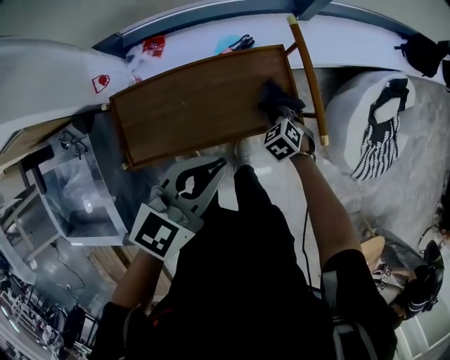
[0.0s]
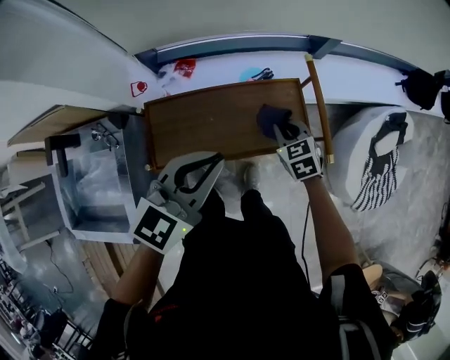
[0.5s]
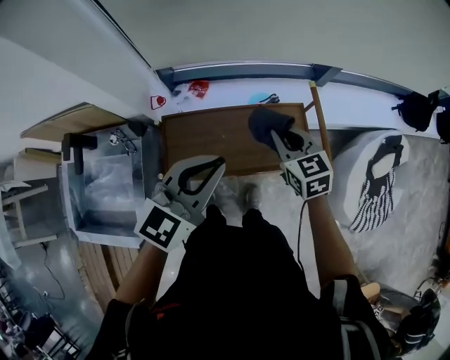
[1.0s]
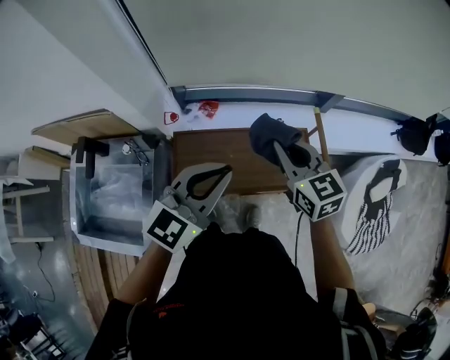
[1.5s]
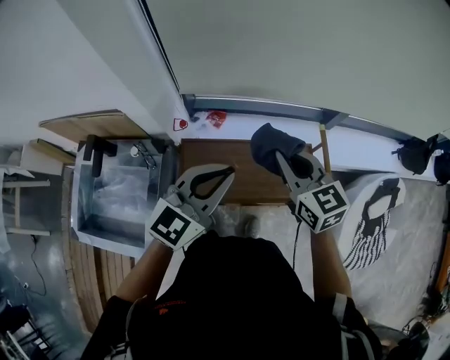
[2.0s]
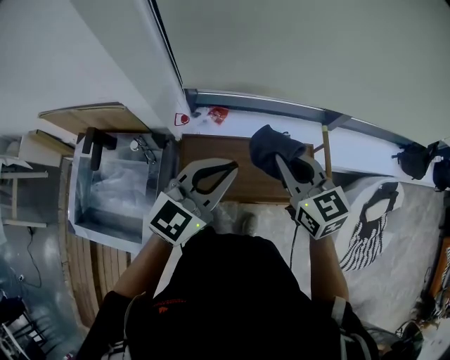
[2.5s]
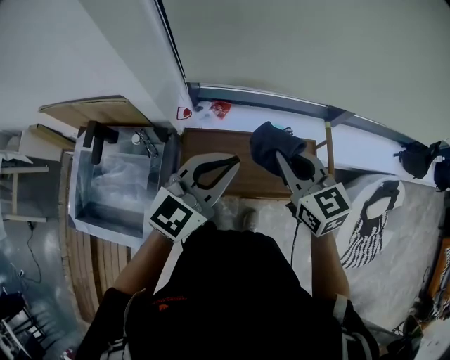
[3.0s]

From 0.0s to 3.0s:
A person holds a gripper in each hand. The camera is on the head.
From 0.0s to 1.5s: The right gripper goes some 40 cm upward and to the left, and tips its fingers upward by some 50 degrees. Meanwhile the left gripper travels upward and to the left by some 20 cm, and turns by about 20 degrees.
From 1.5s to 3.0s: The right gripper changes place by some 5 cm.

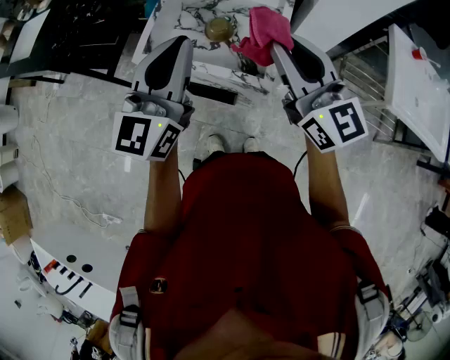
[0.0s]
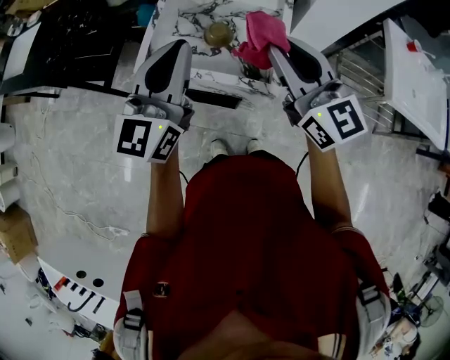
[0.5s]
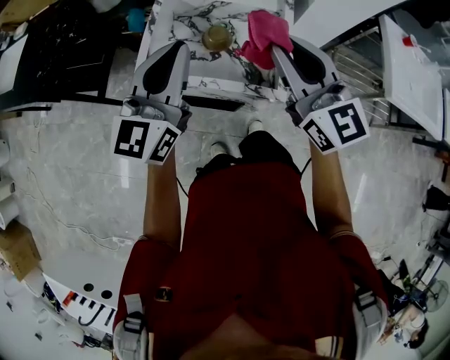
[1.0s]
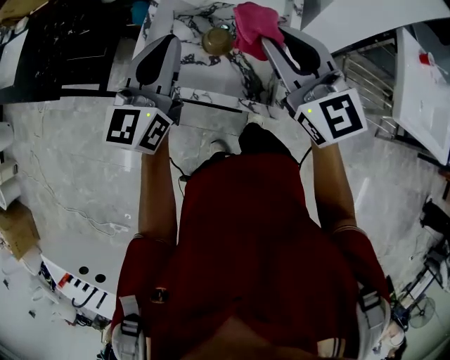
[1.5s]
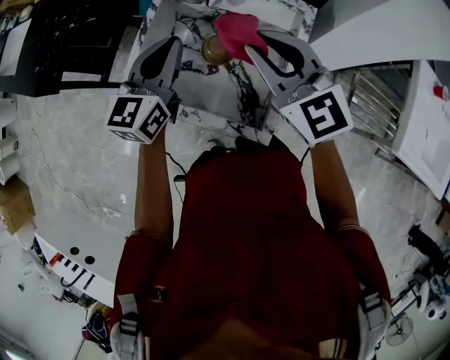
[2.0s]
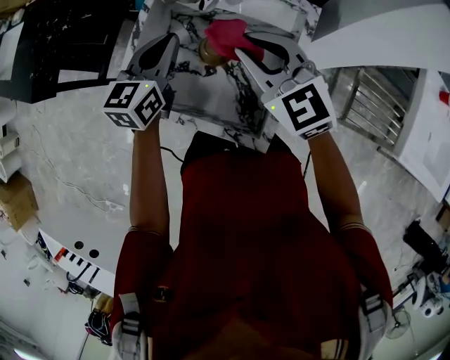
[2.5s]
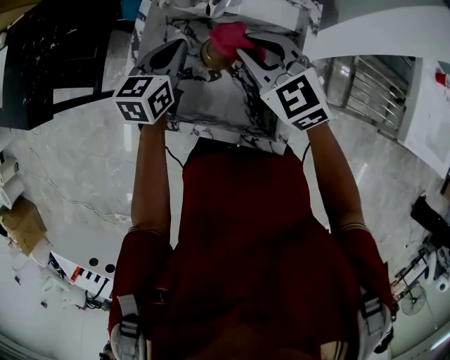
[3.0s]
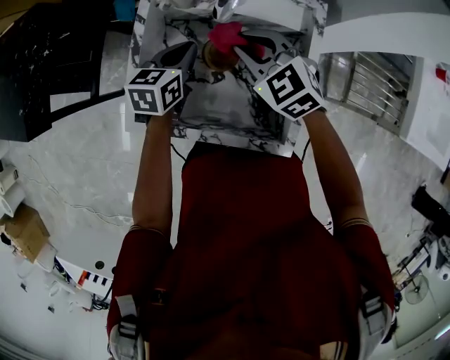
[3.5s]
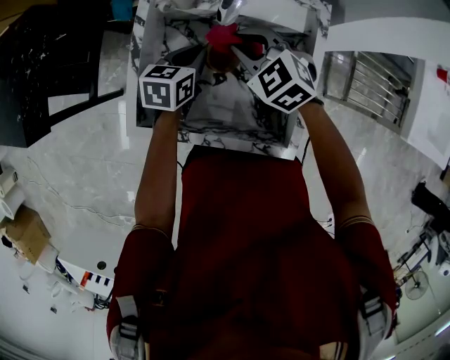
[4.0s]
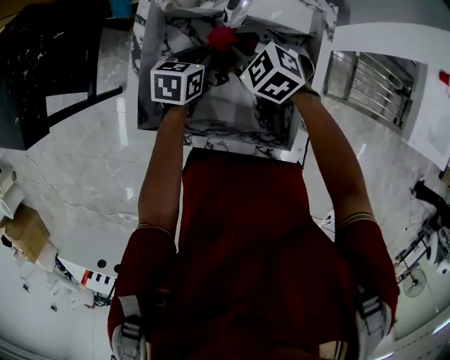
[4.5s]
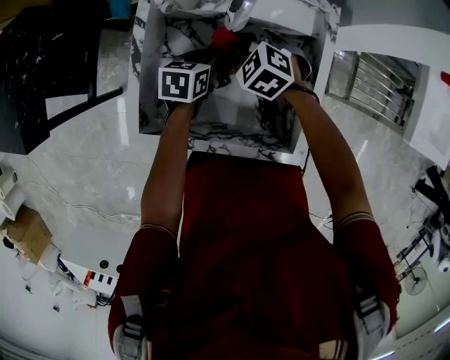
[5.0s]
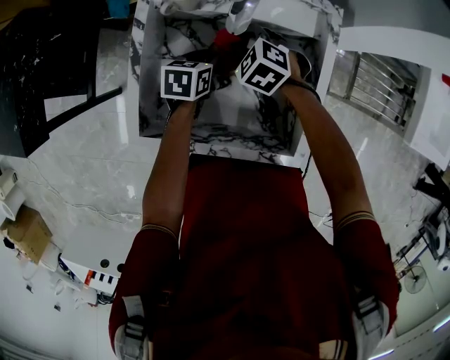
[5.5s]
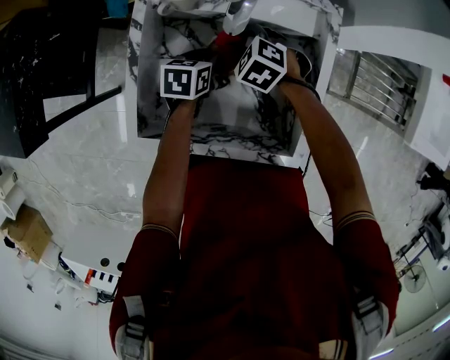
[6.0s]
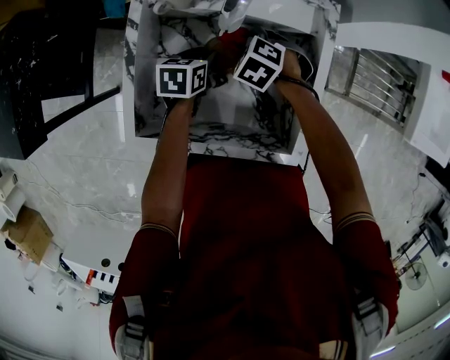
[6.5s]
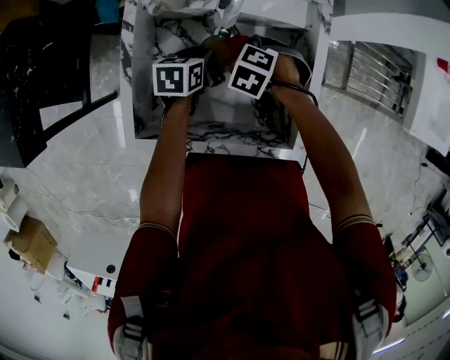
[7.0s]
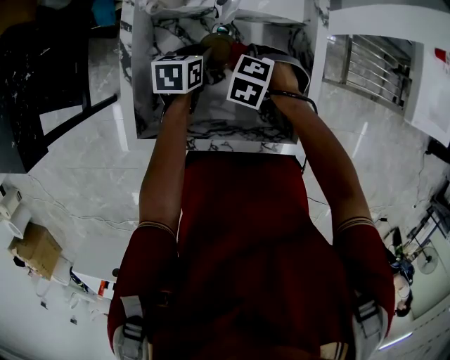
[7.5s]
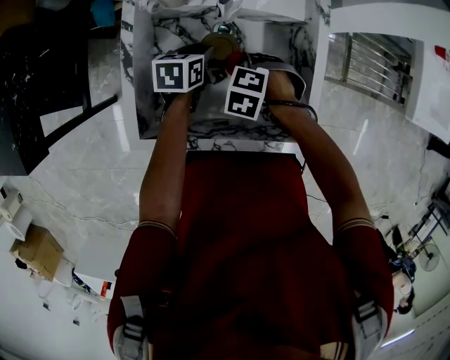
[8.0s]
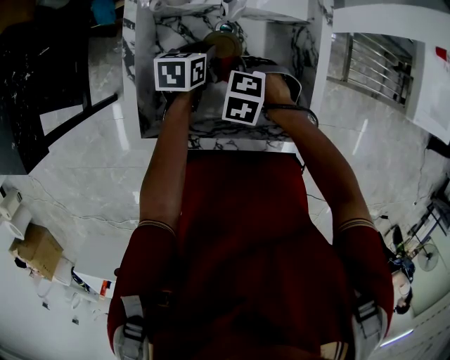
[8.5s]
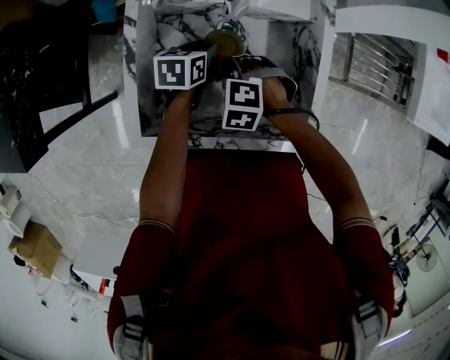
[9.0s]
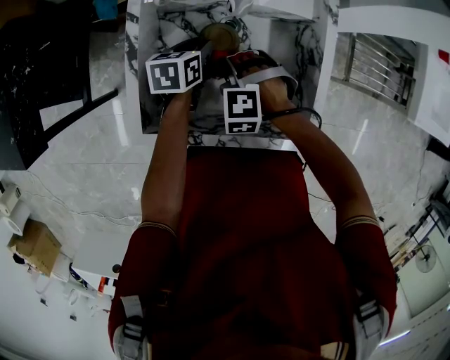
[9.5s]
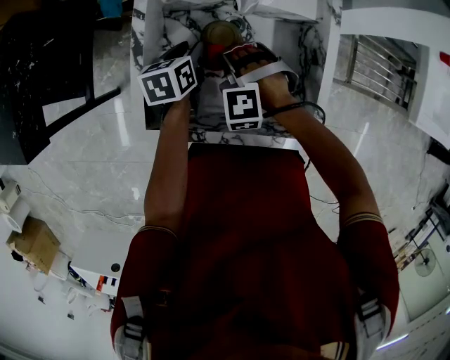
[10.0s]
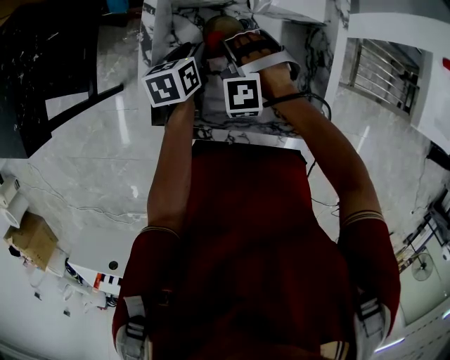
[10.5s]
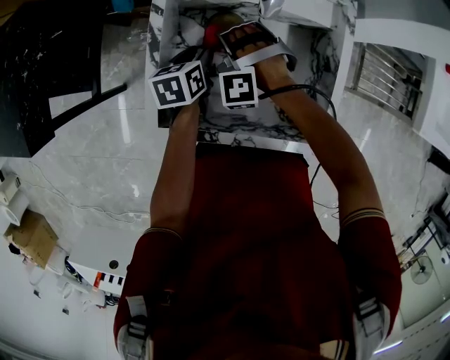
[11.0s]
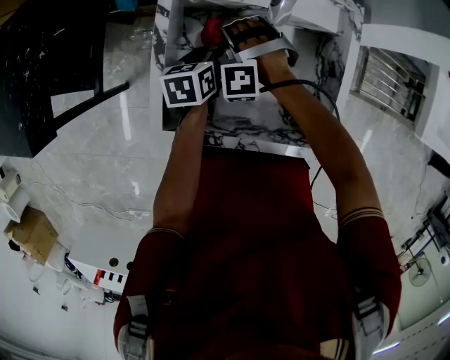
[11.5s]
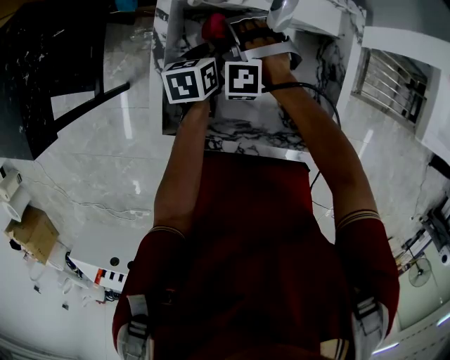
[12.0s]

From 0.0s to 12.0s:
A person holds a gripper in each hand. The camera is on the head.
From 0.0s to 2.0s: The grippers both shift forward and downward by some 25 cm. The right gripper rotates approximately 20 degrees.
From 2.0s to 4.0s: The left gripper is displaced downward by some 20 cm, and swivels roughly 40 degrees. The right gripper goes roughly 20 cm downward and forward, and angles its fingers downward, by some 30 degrees.
From 4.0s to 6.0s: The left gripper shifts roughly 10 cm downward, and opens its fingers; the right gripper travels downward by approximately 10 cm, and swivels roughly 20 degrees.
From 6.0s to 8.0s: The right gripper ends up roughly 10 cm from where it was.
From 8.0s to 10.0s: The left gripper moves approximately 5 cm, while the right gripper moves about 10 cm, and rotates some 40 degrees.
From 10.0s to 12.0s: The right gripper goes roughly 10 cm forward and to the left.

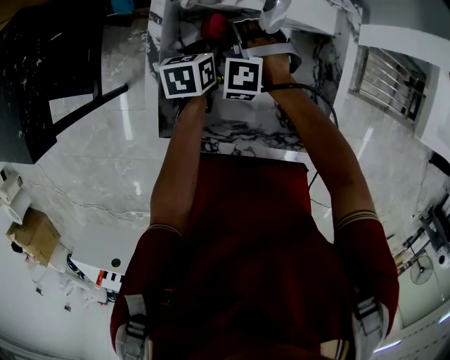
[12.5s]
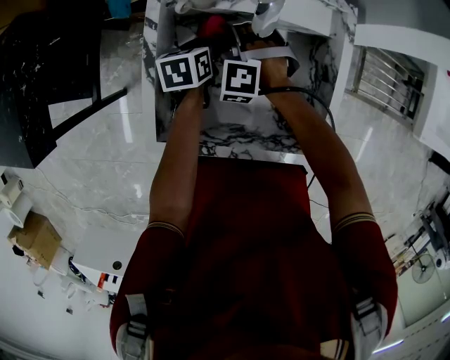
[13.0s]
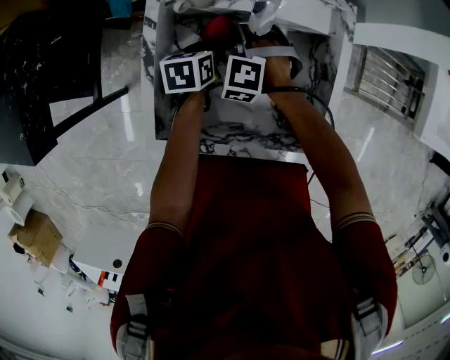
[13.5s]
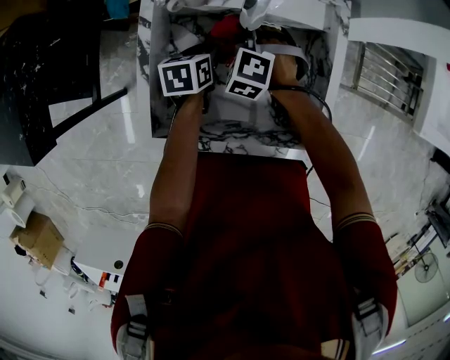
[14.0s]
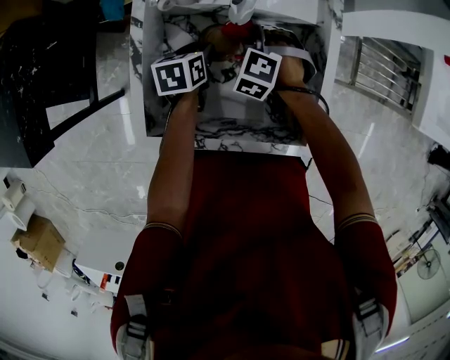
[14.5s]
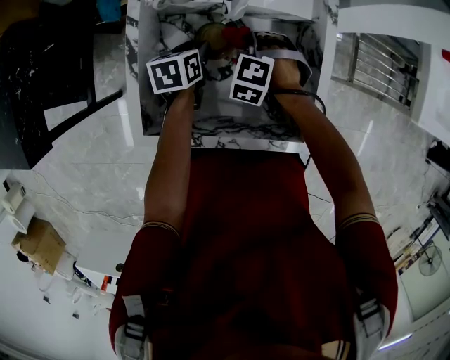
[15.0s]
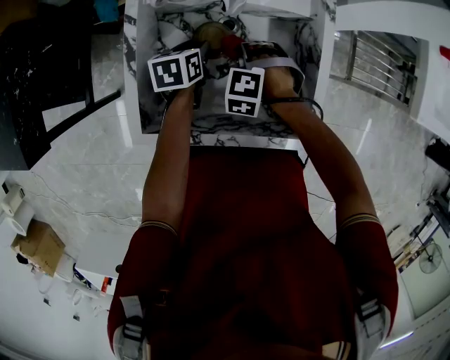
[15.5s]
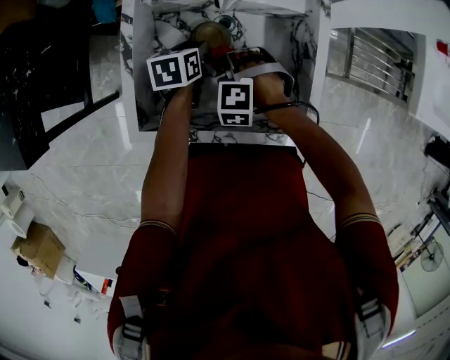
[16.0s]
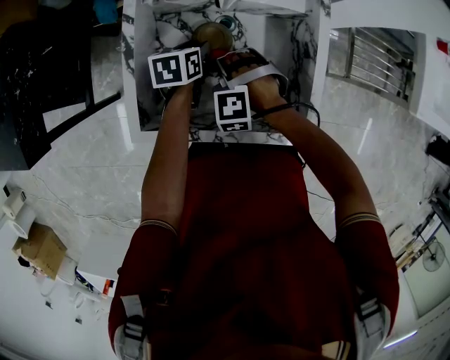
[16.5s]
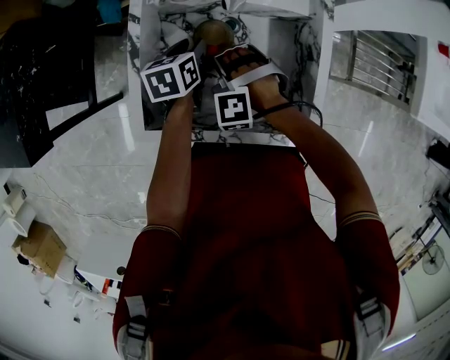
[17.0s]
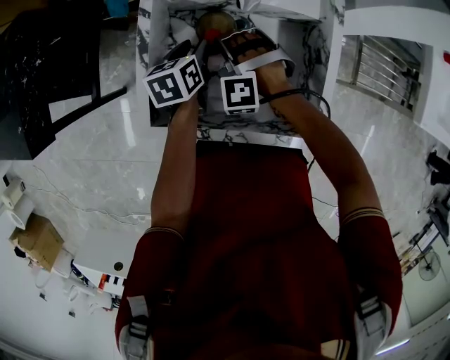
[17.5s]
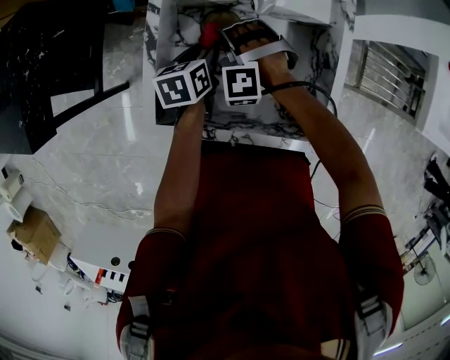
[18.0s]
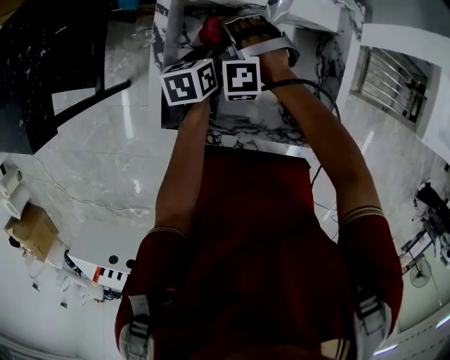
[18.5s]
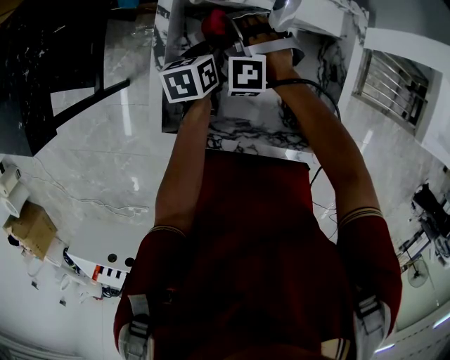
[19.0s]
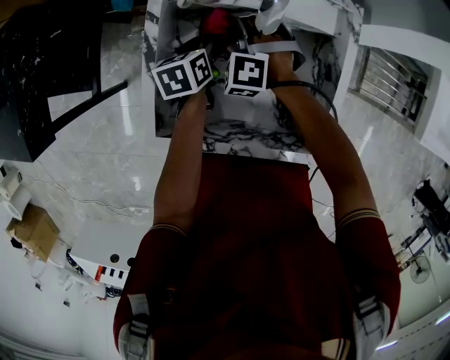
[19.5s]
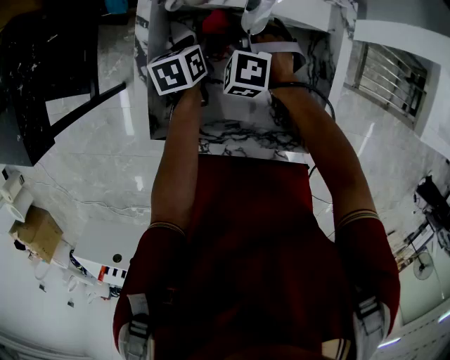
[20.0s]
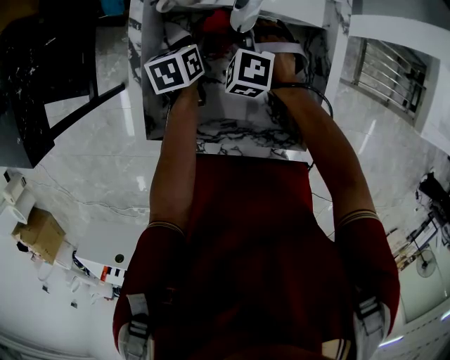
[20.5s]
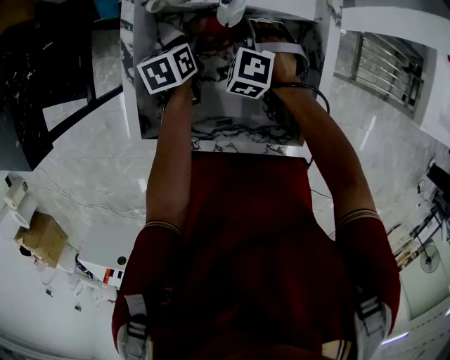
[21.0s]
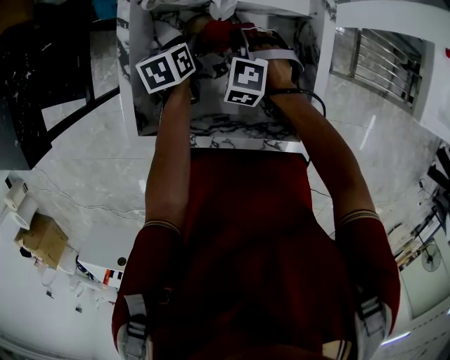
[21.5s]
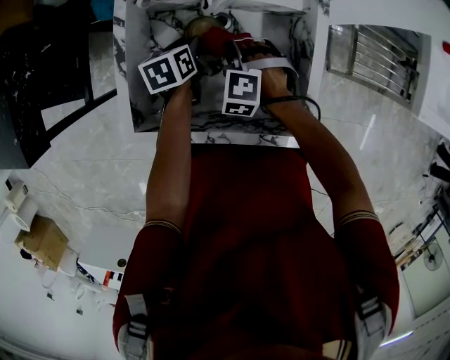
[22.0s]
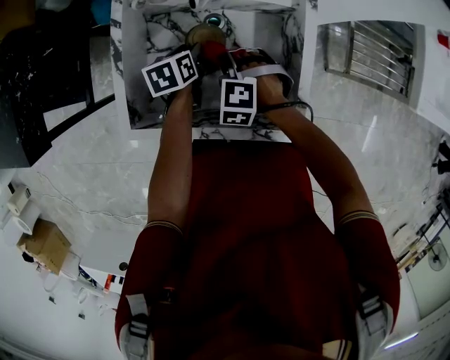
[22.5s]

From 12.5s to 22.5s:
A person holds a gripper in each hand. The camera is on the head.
From 12.5s to 14.5s: The right gripper shifts some 10 cm to the right, and swivels approximately 20 degrees.
From 14.5s to 16.5s: The right gripper goes about 10 cm backward, and turns by about 20 degrees.
From 16.5s to 18.5s: The right gripper shifts some 15 cm forward and to the left.
From 18.5s to 20.5s: The right gripper goes some 10 cm to the right, and rotates about 20 degrees, while the left gripper ends up approximately 5 cm from where it was.
From 20.5s to 22.5s: The left gripper shifts by about 5 cm, while the right gripper is displaced backward by some 15 cm.

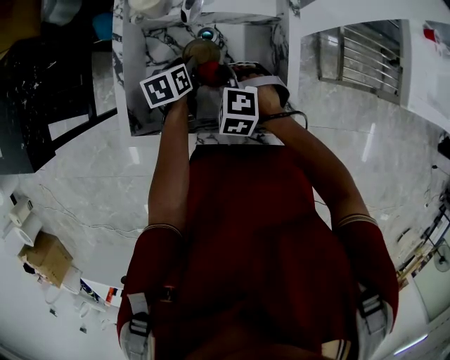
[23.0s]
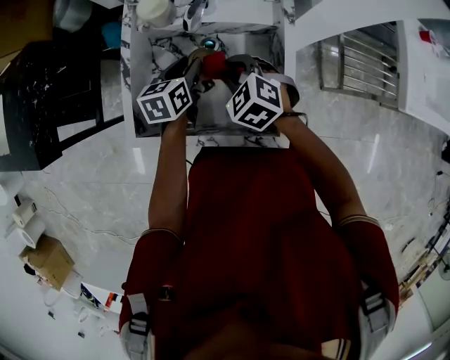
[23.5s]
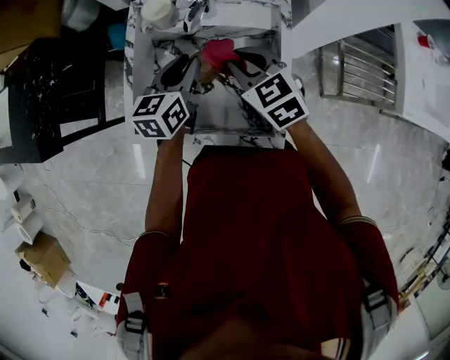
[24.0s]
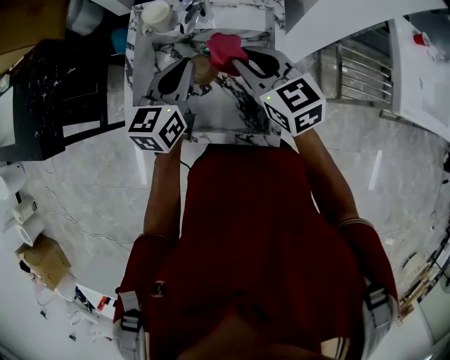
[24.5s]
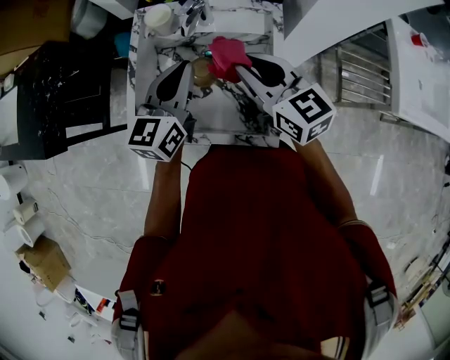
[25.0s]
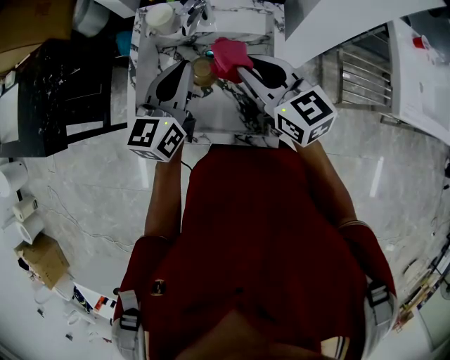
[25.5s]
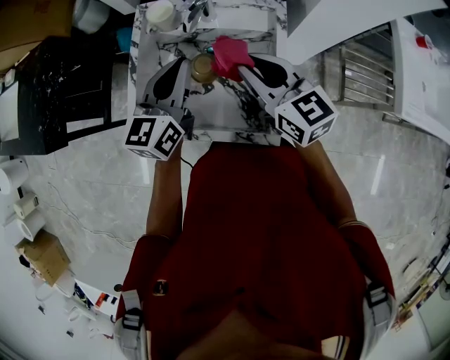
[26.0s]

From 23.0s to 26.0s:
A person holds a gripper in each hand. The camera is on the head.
From 23.0s to 24.5s: The two grippers go approximately 20 cm upward. The right gripper angles its fingers upward, by approximately 40 degrees, while the left gripper tips its fingers upward by roughly 30 degrees, and closes.
From 24.5s to 26.0s: The grippers stay close to where they were, moving slightly.
